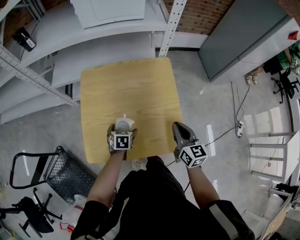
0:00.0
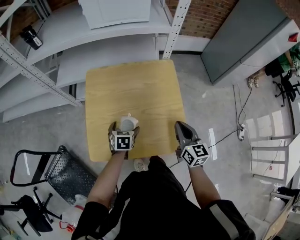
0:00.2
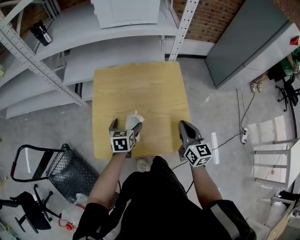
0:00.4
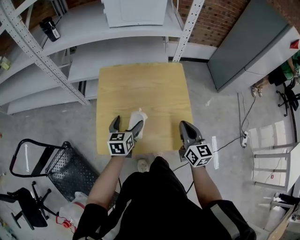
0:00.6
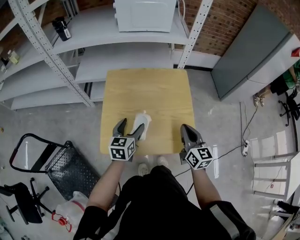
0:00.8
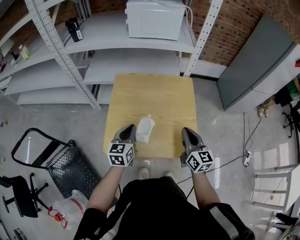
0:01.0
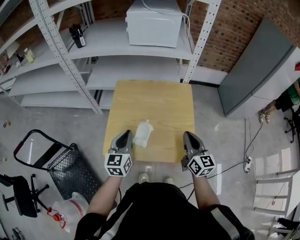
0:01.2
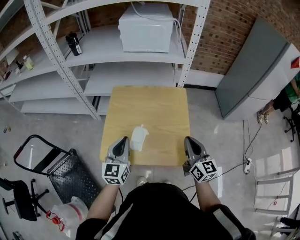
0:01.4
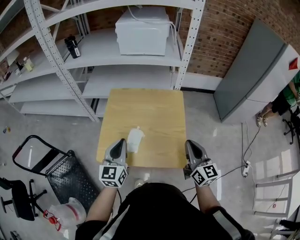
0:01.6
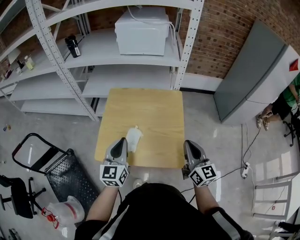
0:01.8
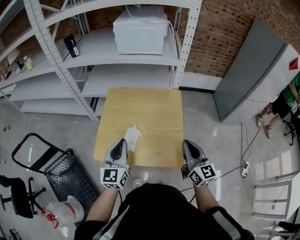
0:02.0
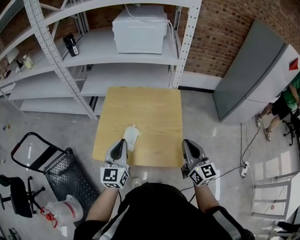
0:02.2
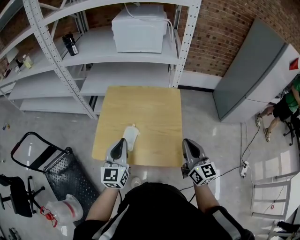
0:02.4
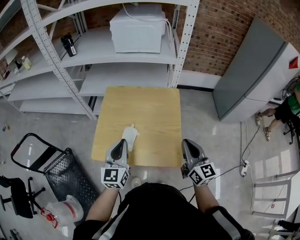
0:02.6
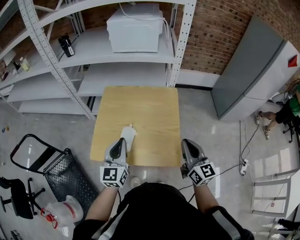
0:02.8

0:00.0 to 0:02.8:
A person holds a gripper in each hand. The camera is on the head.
0:00.0 to 0:01.4: The right gripper travels upward by about 10 cm. Meanwhile the left gripper travels upward by approximately 30 cm, angles its fingers upward, by about 50 degrees, and closes.
0:01.4 to 0:02.8: The left gripper shifts some 5 cm to the right. The right gripper shifts by some 5 cm.

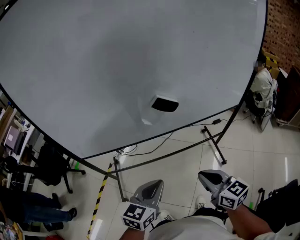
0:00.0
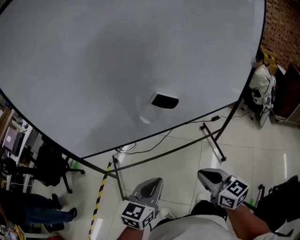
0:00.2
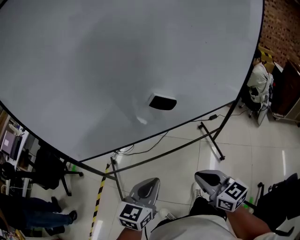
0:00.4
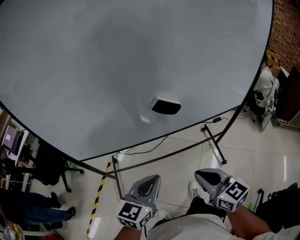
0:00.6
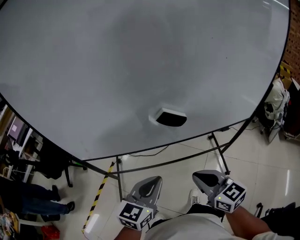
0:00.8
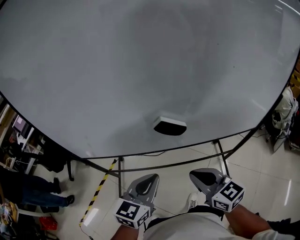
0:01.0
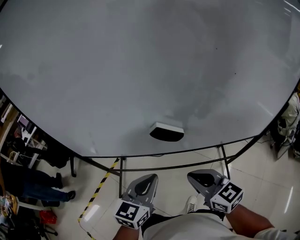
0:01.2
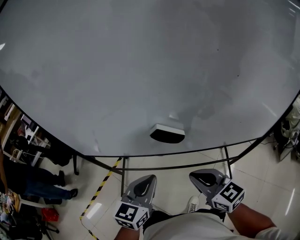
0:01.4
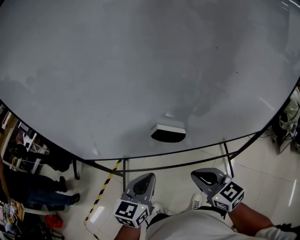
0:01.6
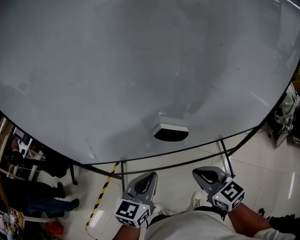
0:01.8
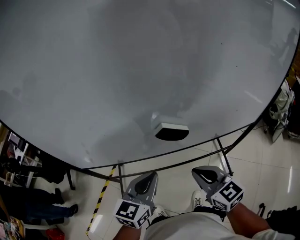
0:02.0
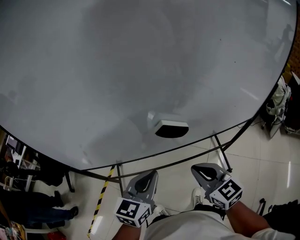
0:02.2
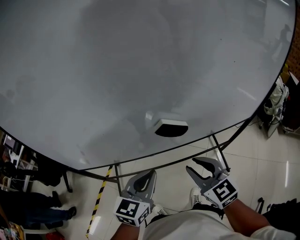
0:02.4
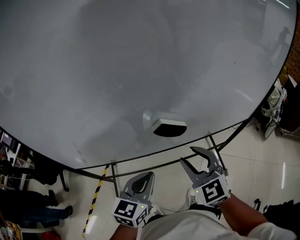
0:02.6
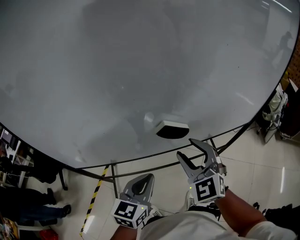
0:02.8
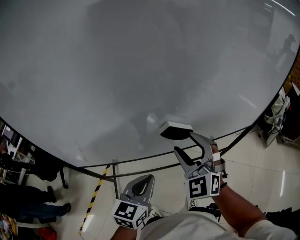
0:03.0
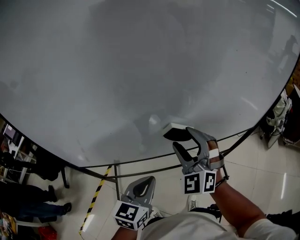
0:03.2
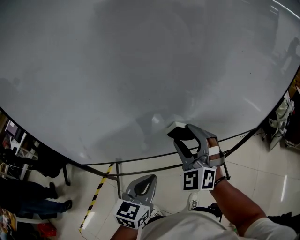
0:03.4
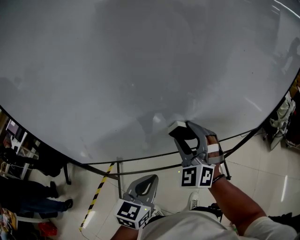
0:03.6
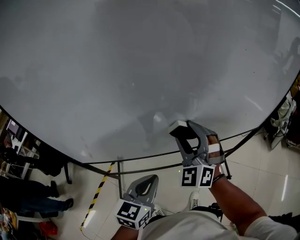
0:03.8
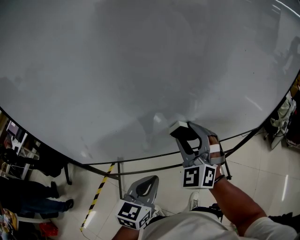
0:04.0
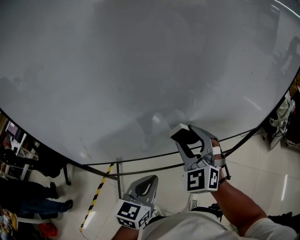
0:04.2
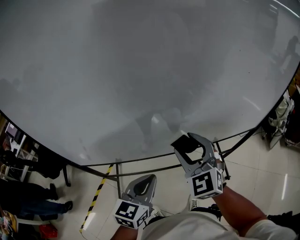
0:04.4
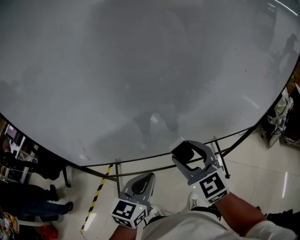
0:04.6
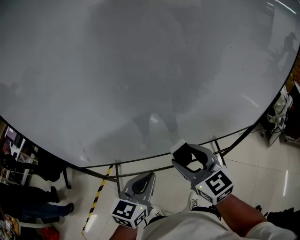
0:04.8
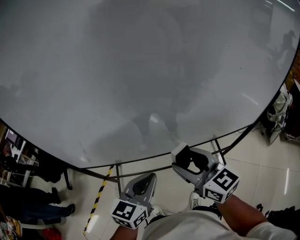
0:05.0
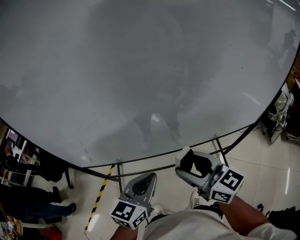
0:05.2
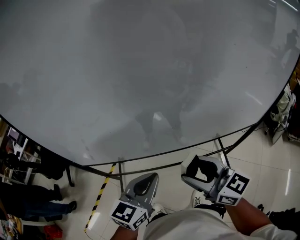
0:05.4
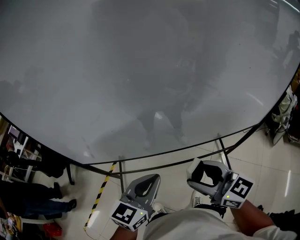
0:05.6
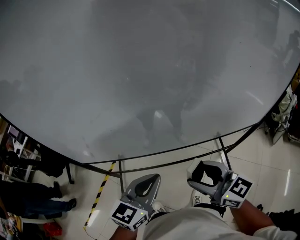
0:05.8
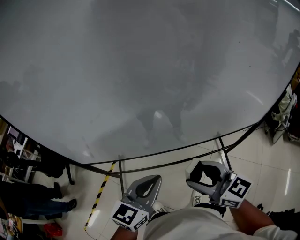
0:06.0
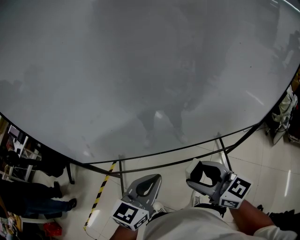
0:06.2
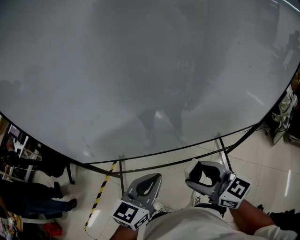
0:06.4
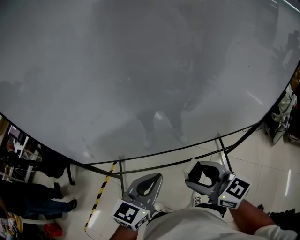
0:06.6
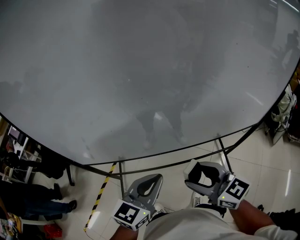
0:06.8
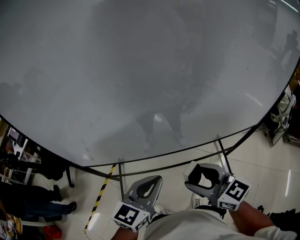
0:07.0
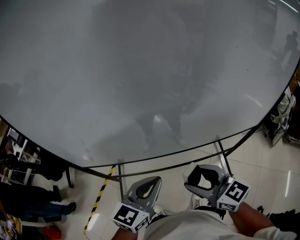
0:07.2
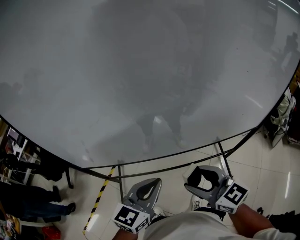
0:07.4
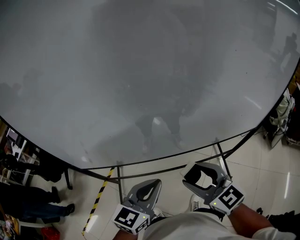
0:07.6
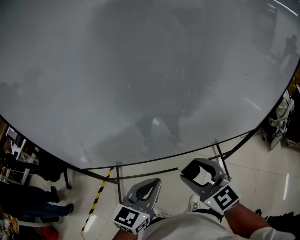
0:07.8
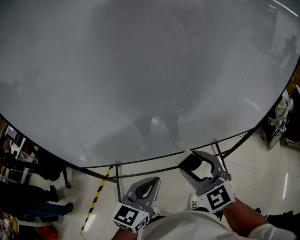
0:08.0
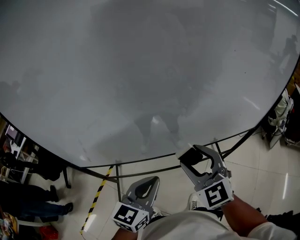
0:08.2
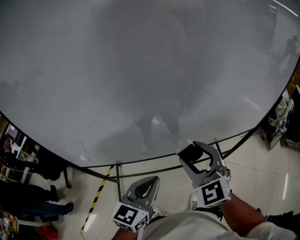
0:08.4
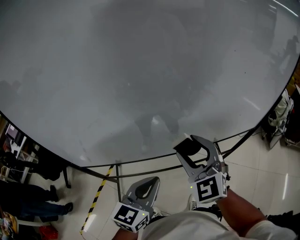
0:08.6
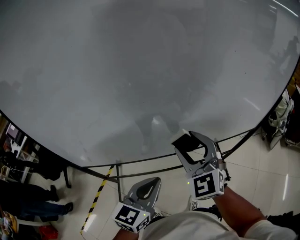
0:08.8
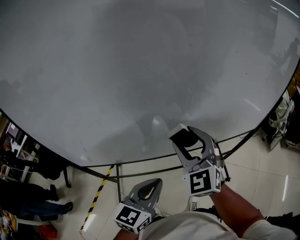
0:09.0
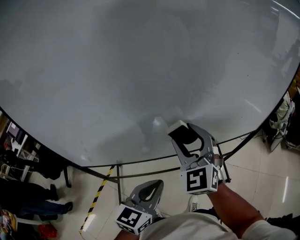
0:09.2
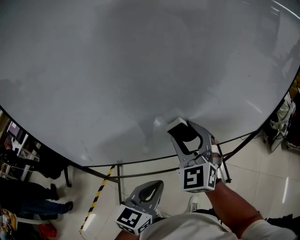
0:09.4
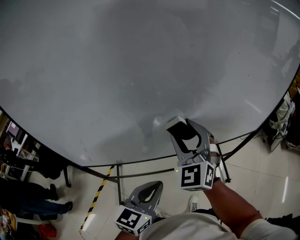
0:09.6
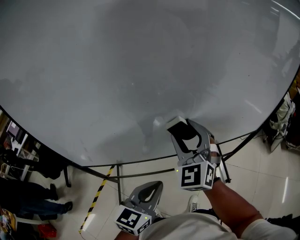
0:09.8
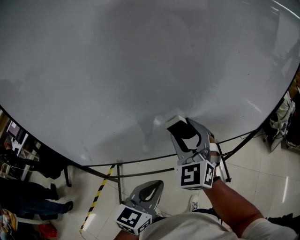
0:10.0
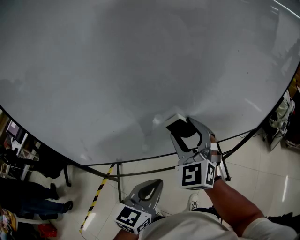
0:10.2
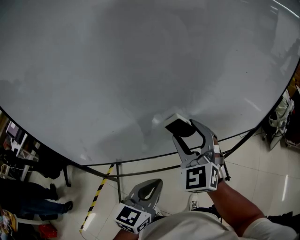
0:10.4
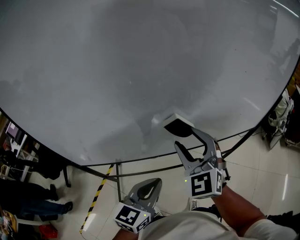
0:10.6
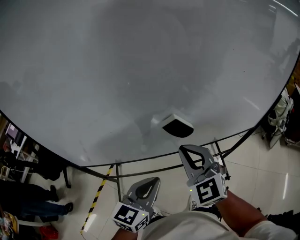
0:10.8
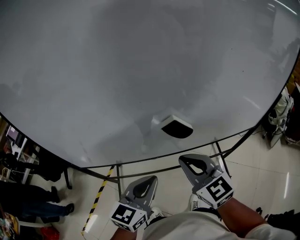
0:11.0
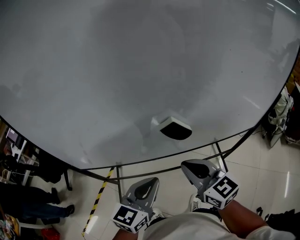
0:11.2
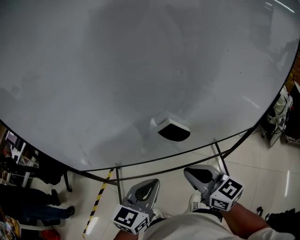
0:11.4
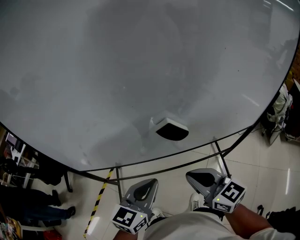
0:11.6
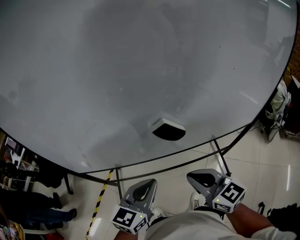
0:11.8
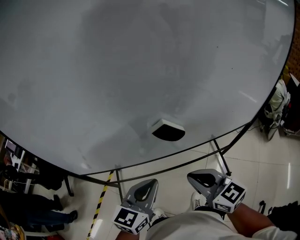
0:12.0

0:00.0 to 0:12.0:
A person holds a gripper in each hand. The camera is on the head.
0:00.0 to 0:01.6: Both grippers move forward, approximately 15 cm. The right gripper changes its angle by some 20 degrees.
0:01.6 to 0:03.0: The right gripper shifts about 15 cm forward, to the left and upward, rotates approximately 60 degrees, and opens.
0:03.0 to 0:04.4: The grippers move only a little.
0:04.4 to 0:06.0: The right gripper is displaced backward by about 10 cm, and rotates roughly 50 degrees.
0:06.0 to 0:07.6: The grippers stay close to where they were, moving slightly.
0:07.6 to 0:09.0: The right gripper goes approximately 10 cm forward and upward, and turns by approximately 40 degrees.
0:09.0 to 0:10.4: The grippers make only small movements.
0:10.4 to 0:12.0: The right gripper is displaced backward and downward by approximately 15 cm, turns by approximately 50 degrees, and closes up.

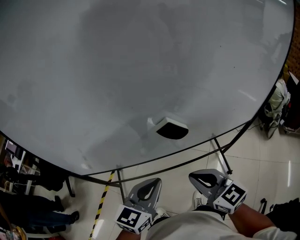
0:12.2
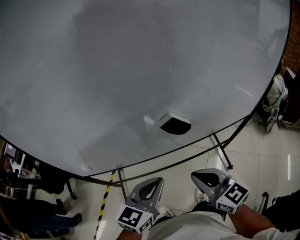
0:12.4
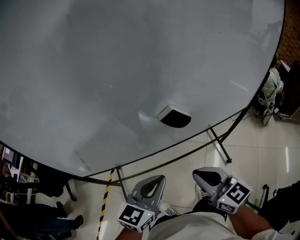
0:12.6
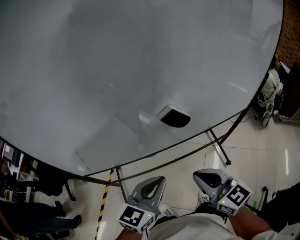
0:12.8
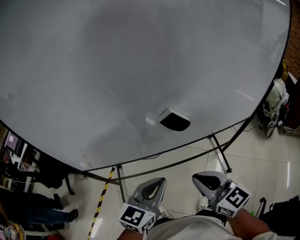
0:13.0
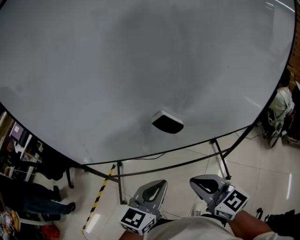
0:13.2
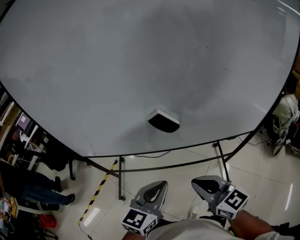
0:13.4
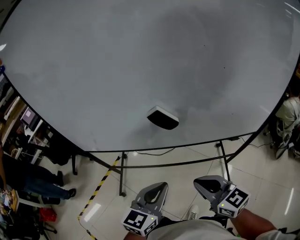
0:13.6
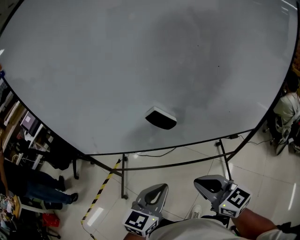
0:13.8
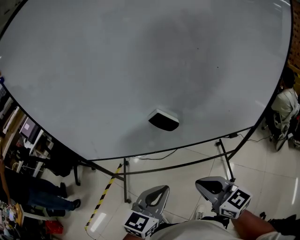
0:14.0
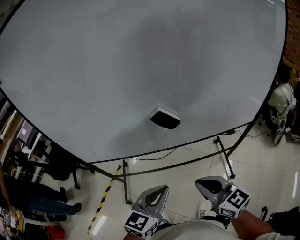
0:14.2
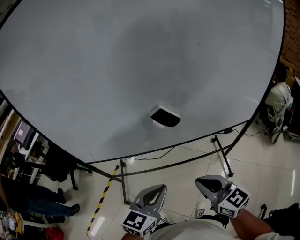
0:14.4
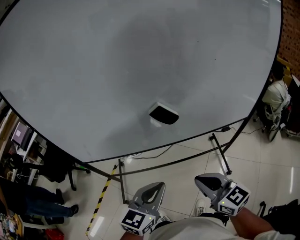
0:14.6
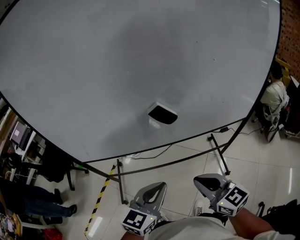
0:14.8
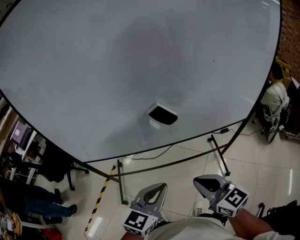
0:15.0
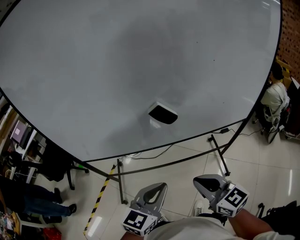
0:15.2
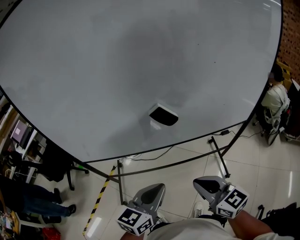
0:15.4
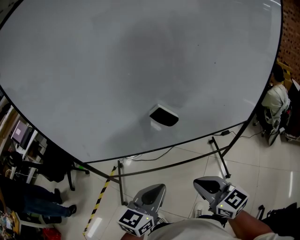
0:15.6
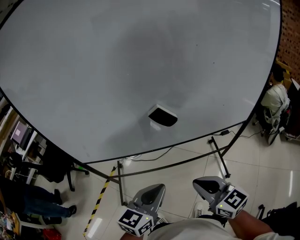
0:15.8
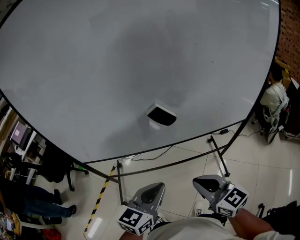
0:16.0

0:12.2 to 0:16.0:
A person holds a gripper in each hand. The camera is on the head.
0:12.2 to 0:13.4: The right gripper moves to the right, some 5 cm. Meanwhile the left gripper is displaced to the right and backward by roughly 10 cm.
0:13.4 to 0:14.8: The left gripper shifts by about 5 cm. Meanwhile the right gripper moves roughly 5 cm.
0:14.8 to 0:16.0: The grippers stay close to where they were, moving slightly.

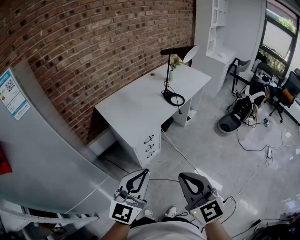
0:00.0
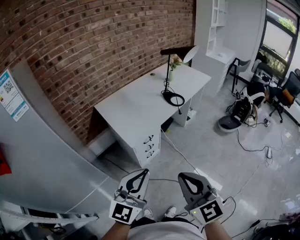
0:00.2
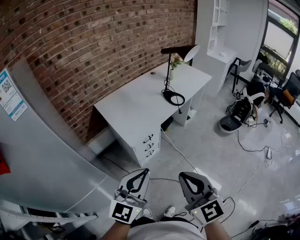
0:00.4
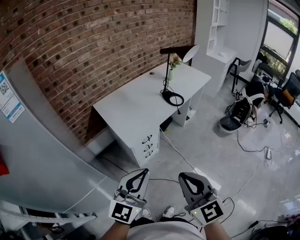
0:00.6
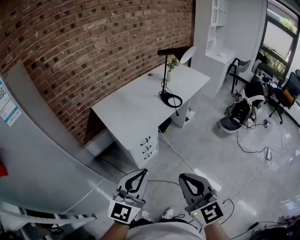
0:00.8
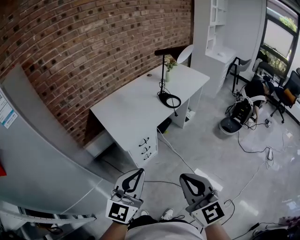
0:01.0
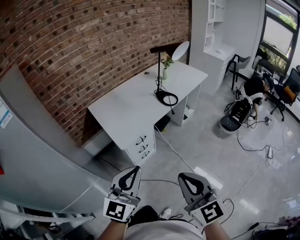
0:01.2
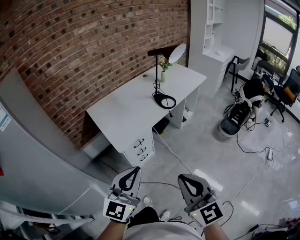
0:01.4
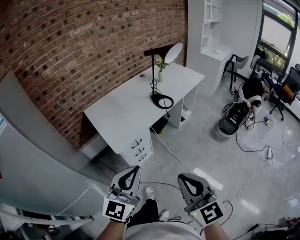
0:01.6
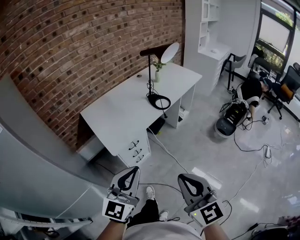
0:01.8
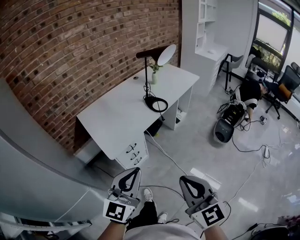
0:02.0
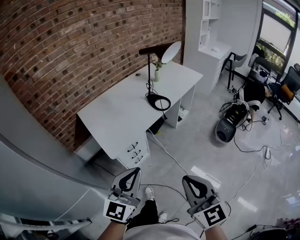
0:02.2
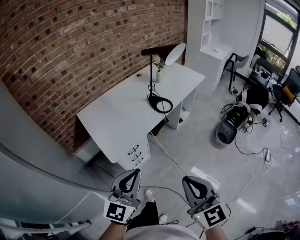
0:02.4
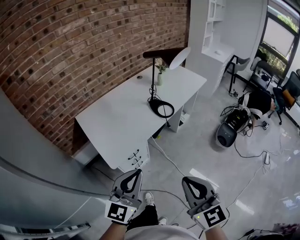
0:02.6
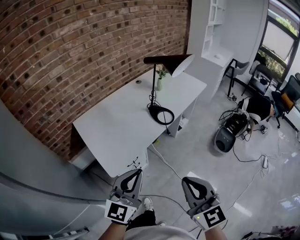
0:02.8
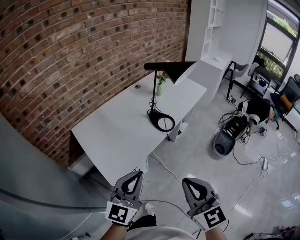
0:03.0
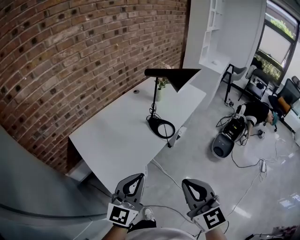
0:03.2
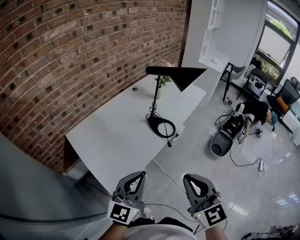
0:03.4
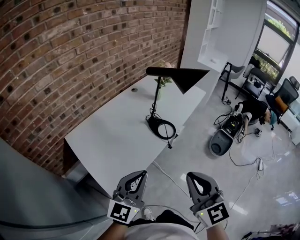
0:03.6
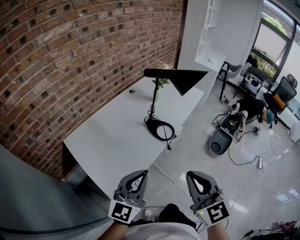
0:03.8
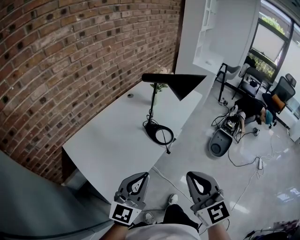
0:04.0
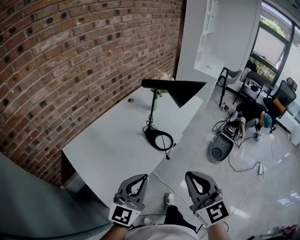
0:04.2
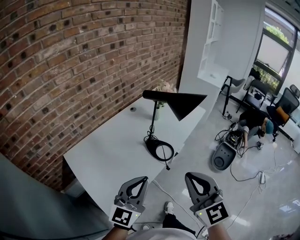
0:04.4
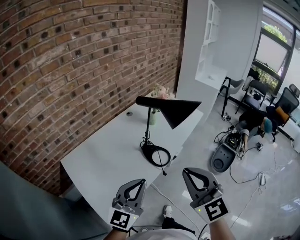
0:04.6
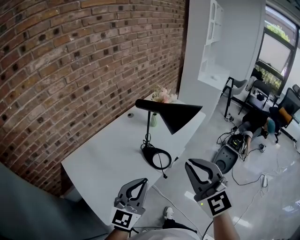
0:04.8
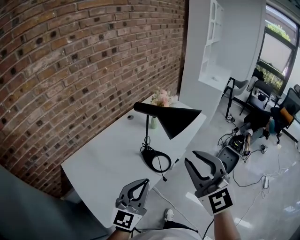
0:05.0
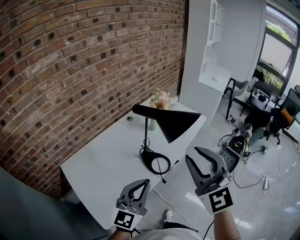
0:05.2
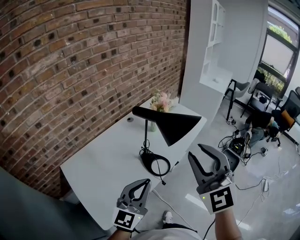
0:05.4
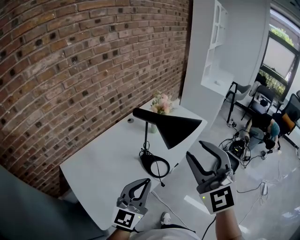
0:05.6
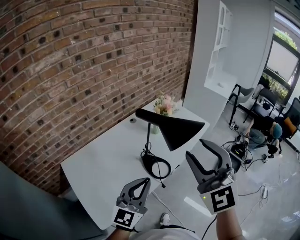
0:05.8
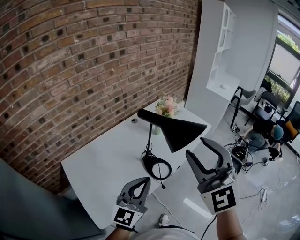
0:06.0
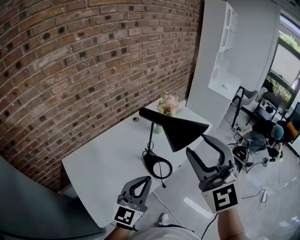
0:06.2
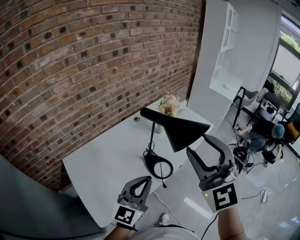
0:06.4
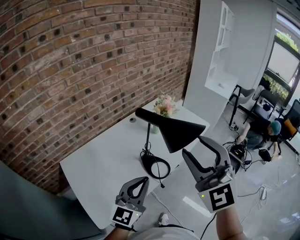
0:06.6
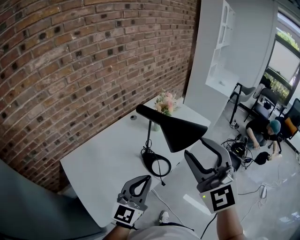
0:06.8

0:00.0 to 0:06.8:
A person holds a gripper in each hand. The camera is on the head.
0:00.0 to 0:01.4: The two grippers go about 10 cm to the right.
0:01.4 to 0:02.8: Both grippers move forward, about 20 cm.
0:02.8 to 0:04.0: The grippers both shift forward by some 15 cm.
0:04.0 to 0:05.4: The left gripper is displaced forward and to the right by approximately 15 cm. Meanwhile the right gripper goes about 25 cm forward and upward, swivels about 20 degrees, and opens.
0:05.4 to 0:06.8: The grippers stay close to where they were, moving slightly.
